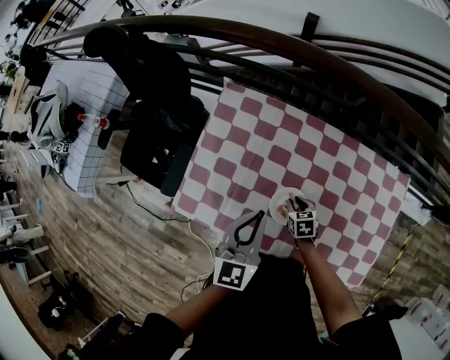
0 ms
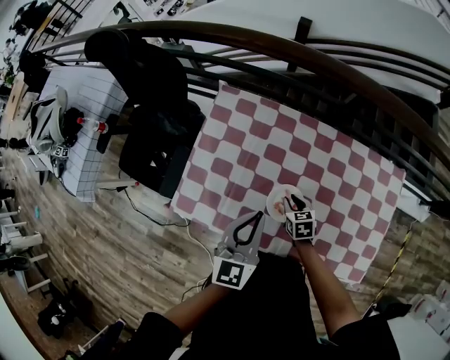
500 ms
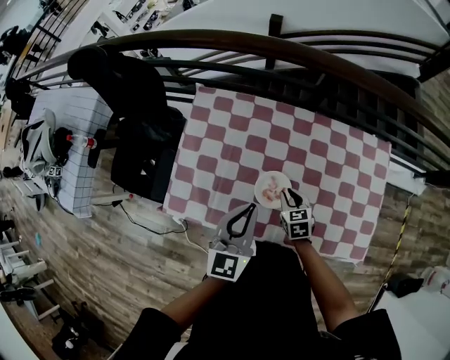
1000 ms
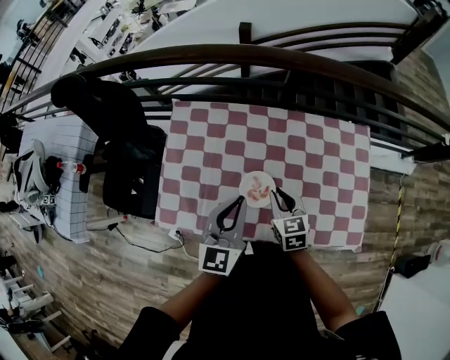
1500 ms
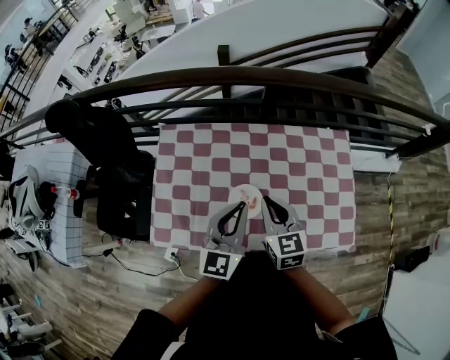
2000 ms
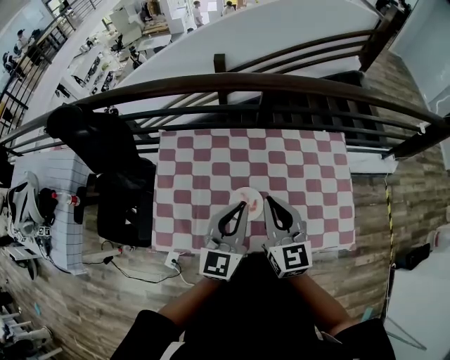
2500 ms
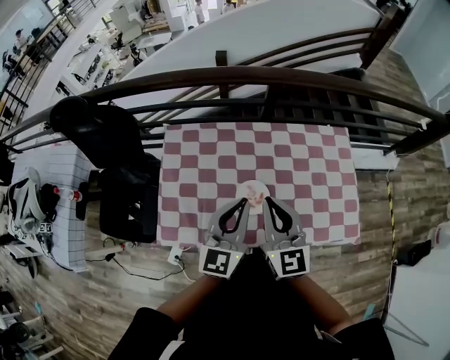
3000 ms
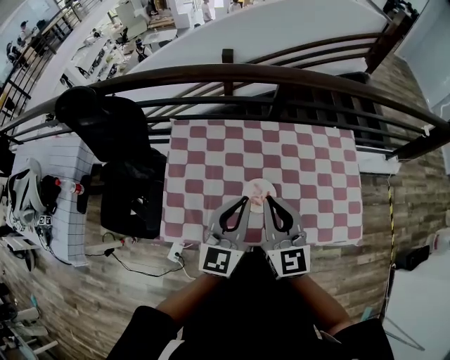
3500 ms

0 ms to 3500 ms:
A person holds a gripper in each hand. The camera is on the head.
0 ms to 2000 ms: The left gripper travels to the right and upward by some 10 cm, and changes its angle by about 20 degrees; the right gripper is displaced upward by roughly 30 cm, points its fingers approximately 40 degrees further upward, and closes up.
2000 ms to 3500 ms: The left gripper is displaced to the left by some 5 cm. Meanwhile the right gripper moves upward, to the left and backward, roughly 10 cm.

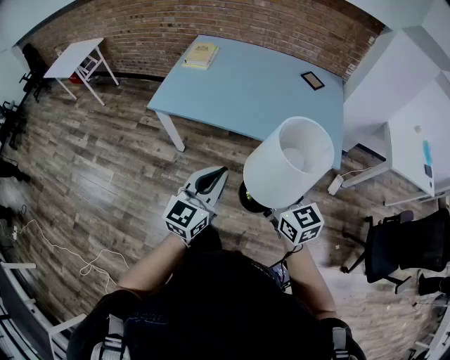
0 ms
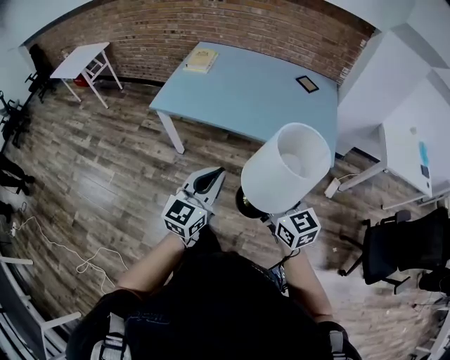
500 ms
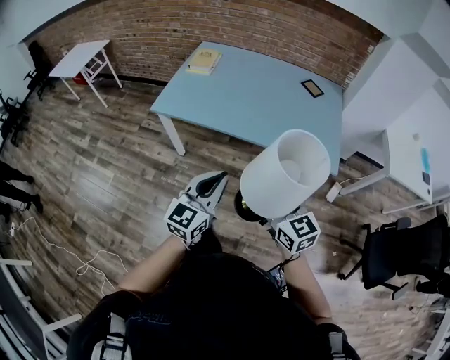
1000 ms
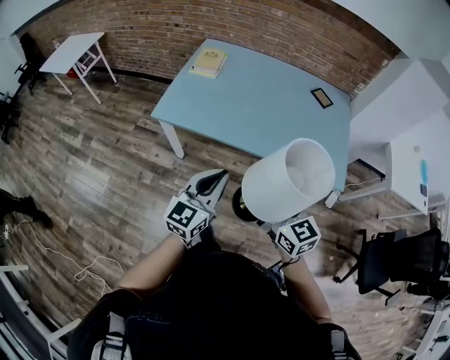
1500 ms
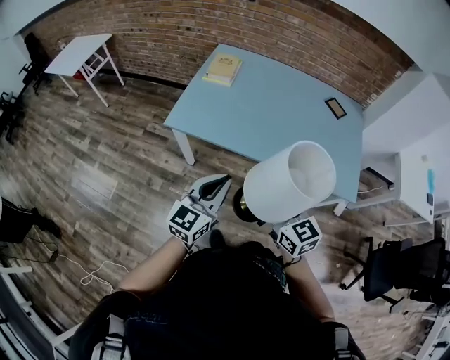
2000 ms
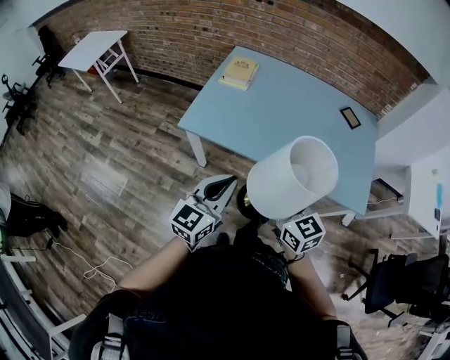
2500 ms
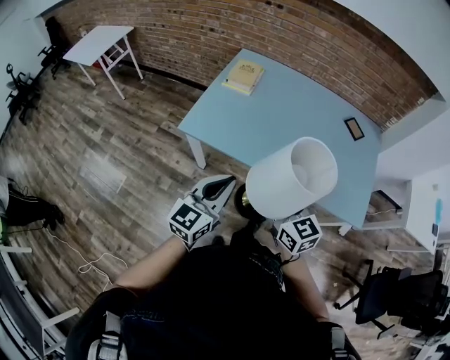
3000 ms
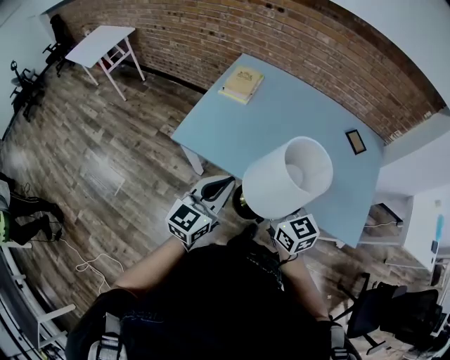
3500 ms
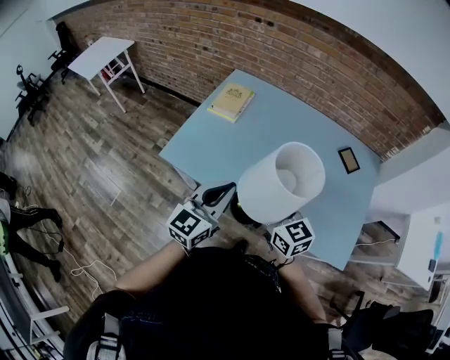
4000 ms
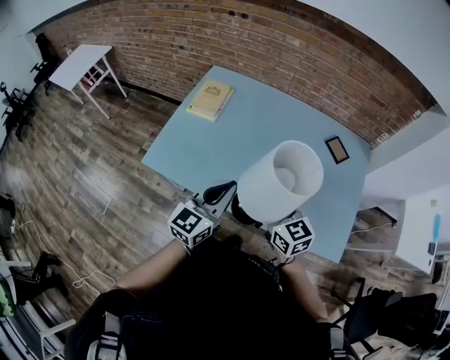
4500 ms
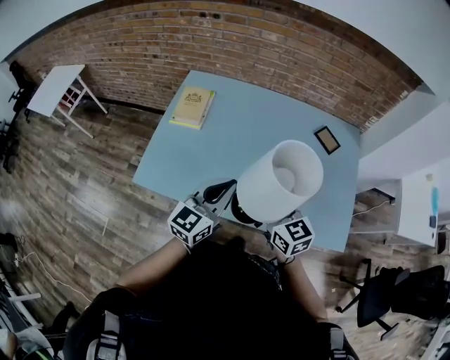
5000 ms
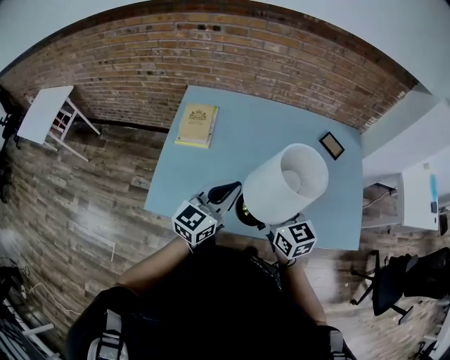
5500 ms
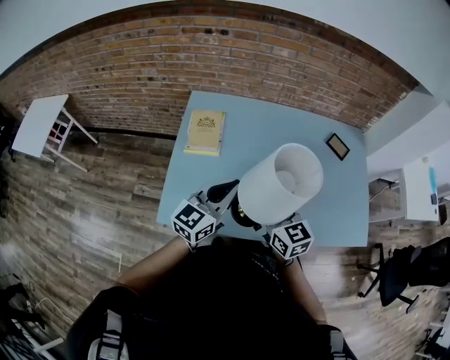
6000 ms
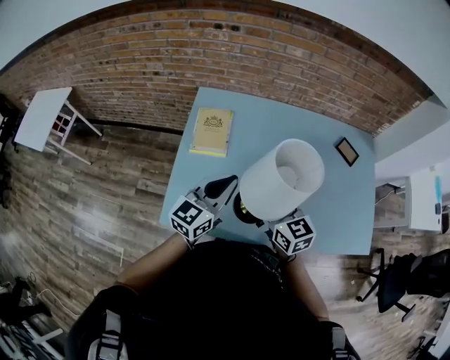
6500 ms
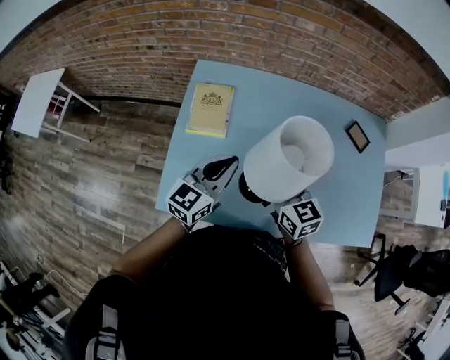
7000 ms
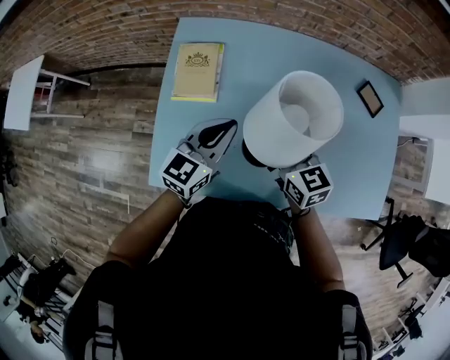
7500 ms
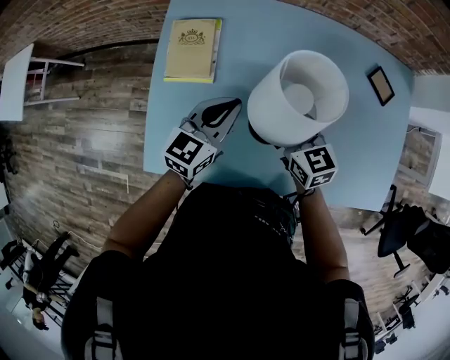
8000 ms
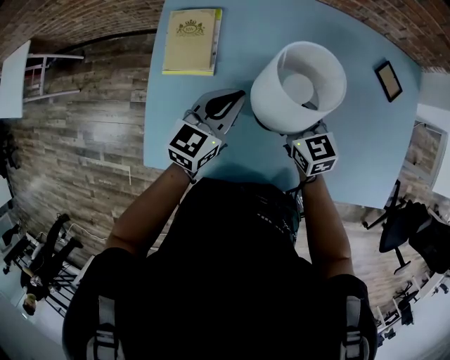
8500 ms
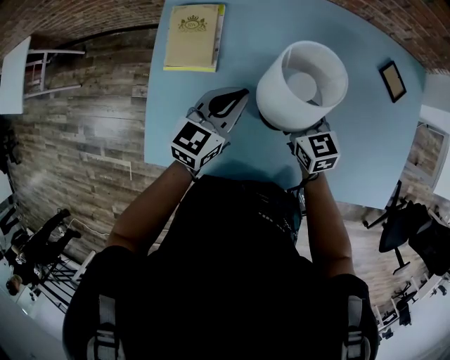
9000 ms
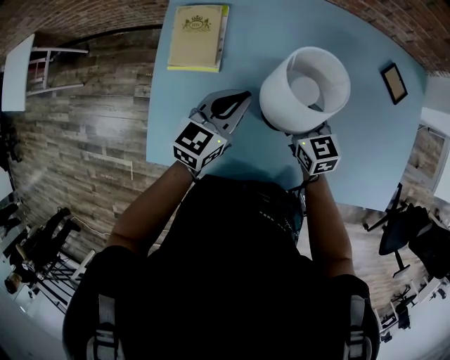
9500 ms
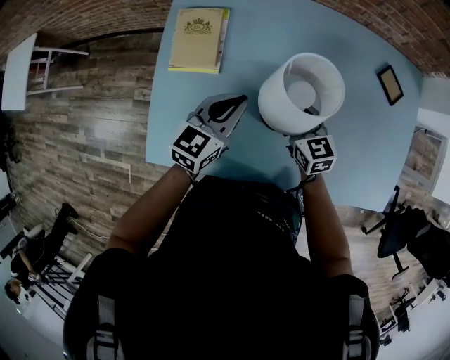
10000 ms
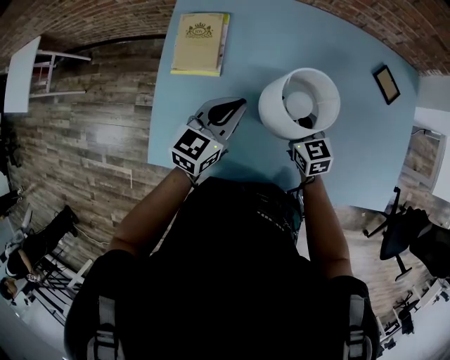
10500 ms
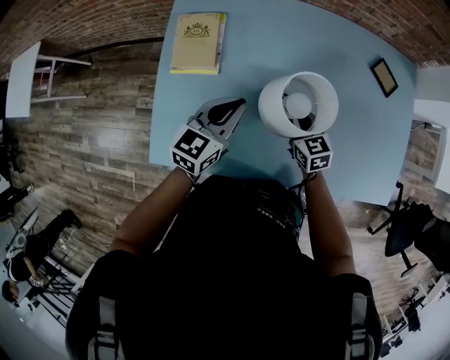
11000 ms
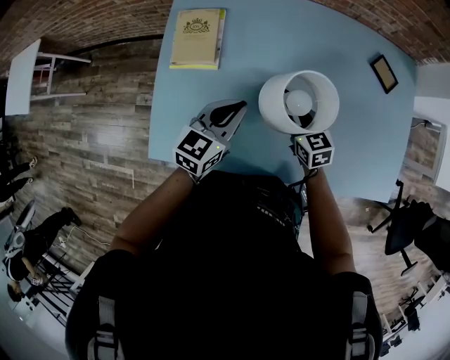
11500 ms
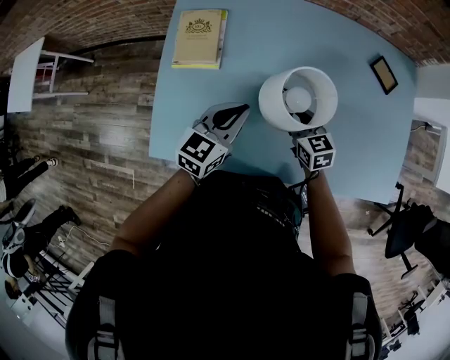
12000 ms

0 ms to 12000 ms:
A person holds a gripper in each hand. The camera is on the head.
0 ms to 2000 ms: The two grippers go approximately 20 cm to the left and forward.
2000 ms to 4000 ms: The right gripper goes some 25 cm forward; the left gripper heads forward and to the right, covering approximately 25 cm.
4000 ms to 6000 ms: The right gripper moves roughly 20 cm, and turns by about 30 degrees. The left gripper changes place by approximately 25 cm, and changes its angle by approximately 30 degrees.
6000 ms to 8000 ms: The grippers both shift forward and downward by roughly 25 cm.
8000 ms to 10000 ms: The right gripper travels downward by roughly 5 cm.
10000 ms to 12000 ms: Both grippers move backward, roughly 5 cm.

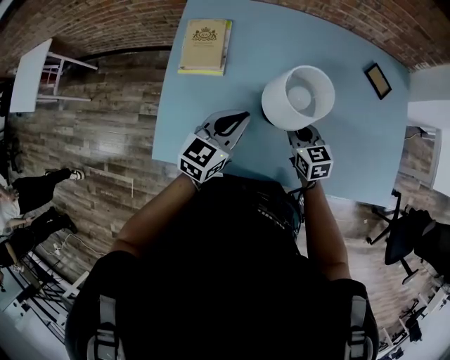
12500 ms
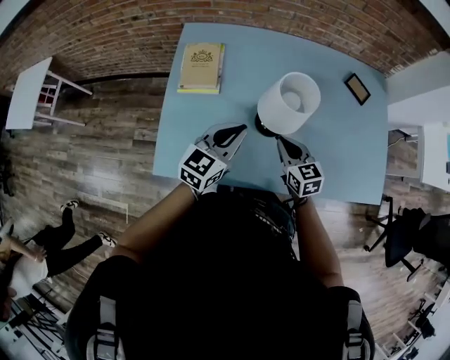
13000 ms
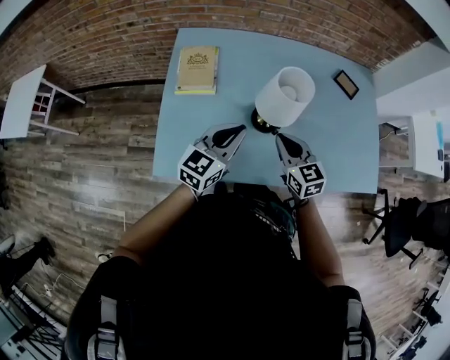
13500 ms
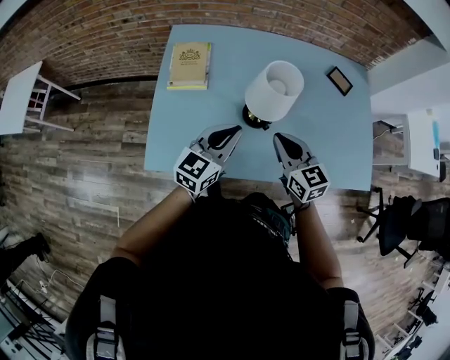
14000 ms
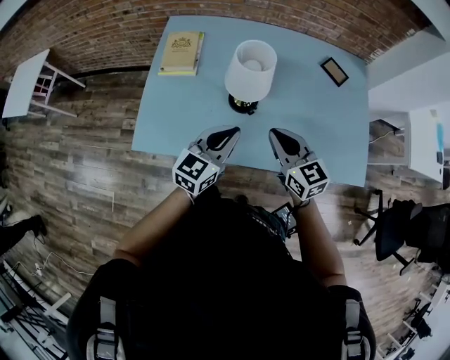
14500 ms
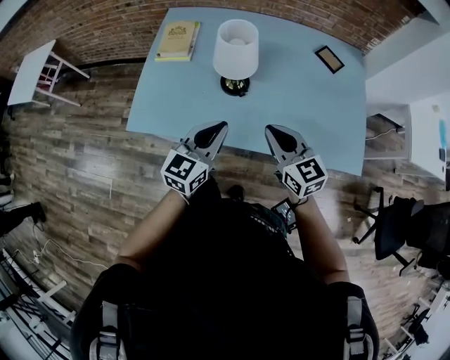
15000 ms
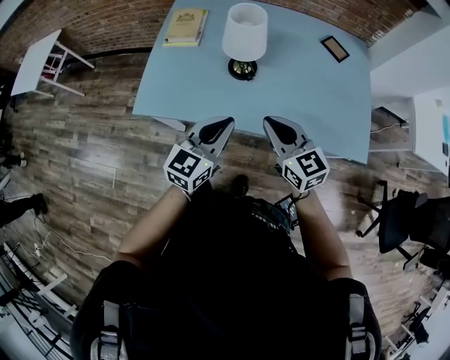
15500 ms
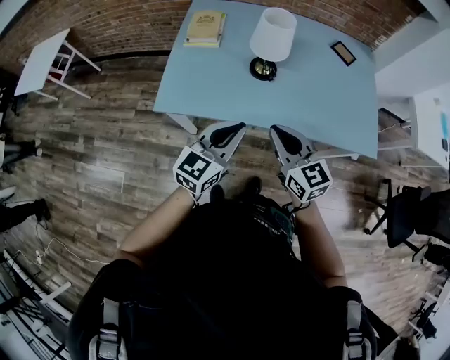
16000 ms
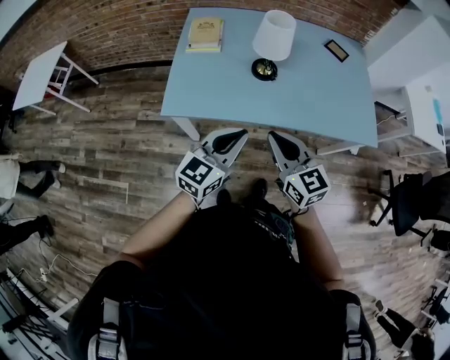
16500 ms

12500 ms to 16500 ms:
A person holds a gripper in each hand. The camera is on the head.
12500 ms to 14500 ms: The left gripper heads backward, to the right and upward, covering approximately 20 cm. The right gripper travels upward and backward by about 25 cm.
14500 ms to 16500 ms: The right gripper goes about 25 cm backward and to the left. Meanwhile the left gripper is displaced backward by roughly 25 cm.

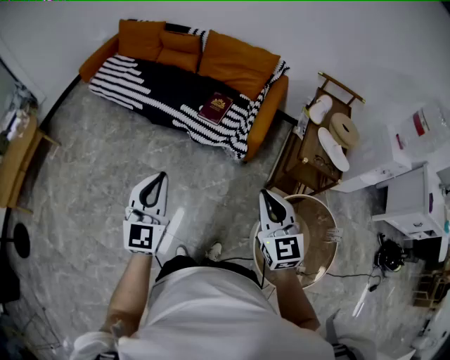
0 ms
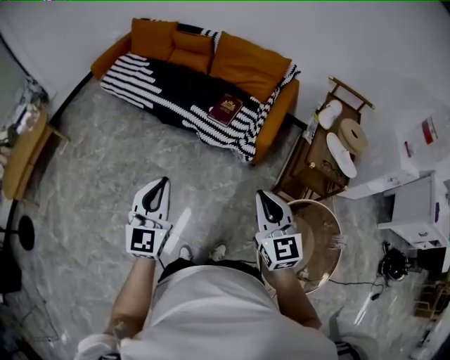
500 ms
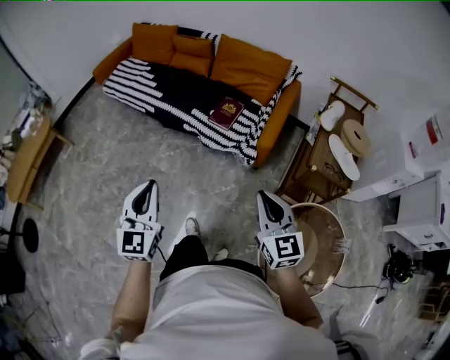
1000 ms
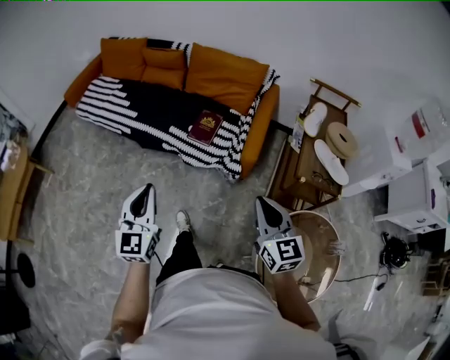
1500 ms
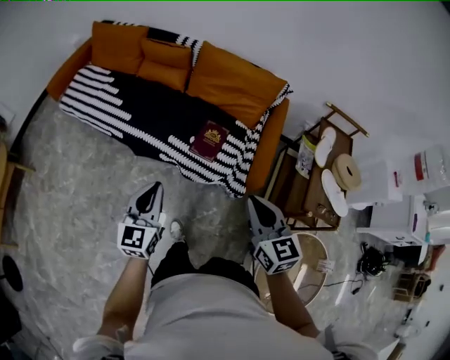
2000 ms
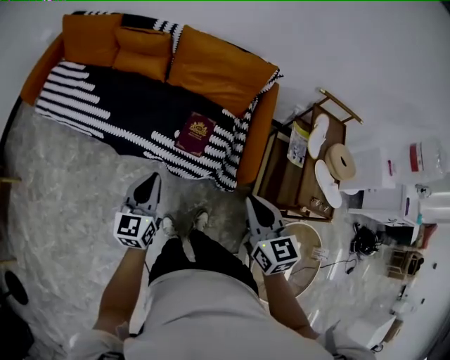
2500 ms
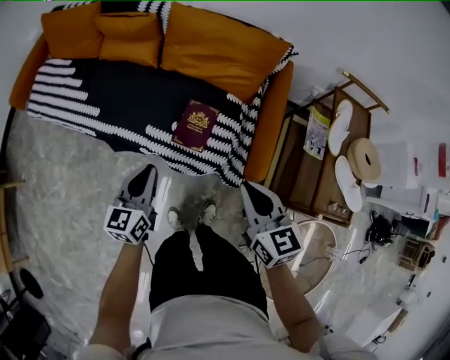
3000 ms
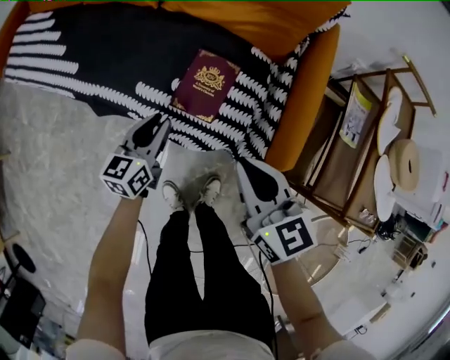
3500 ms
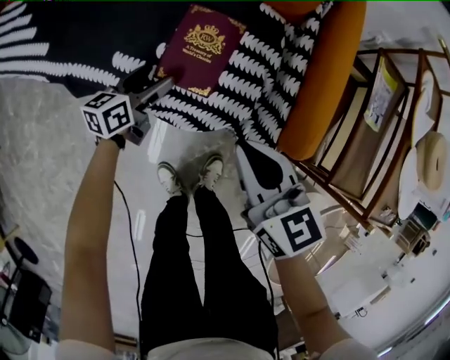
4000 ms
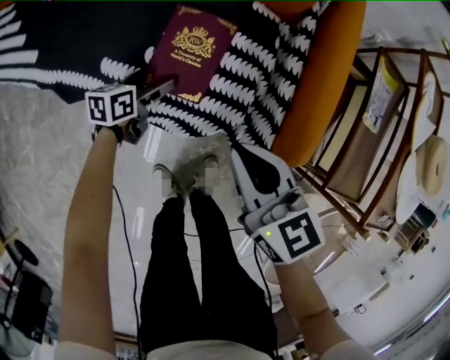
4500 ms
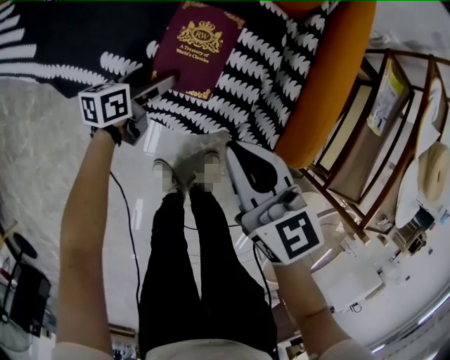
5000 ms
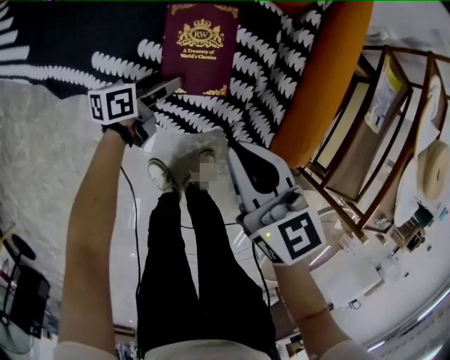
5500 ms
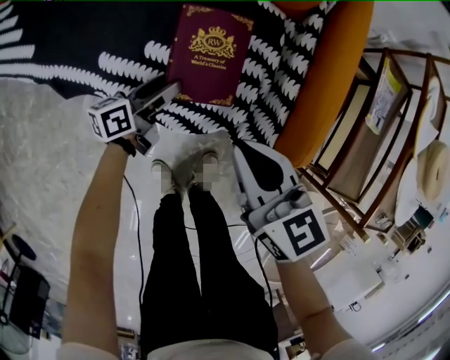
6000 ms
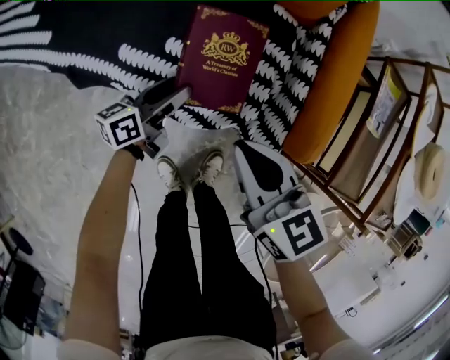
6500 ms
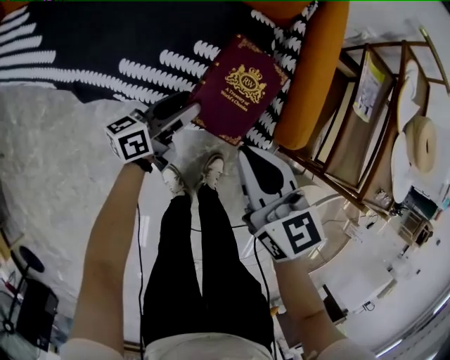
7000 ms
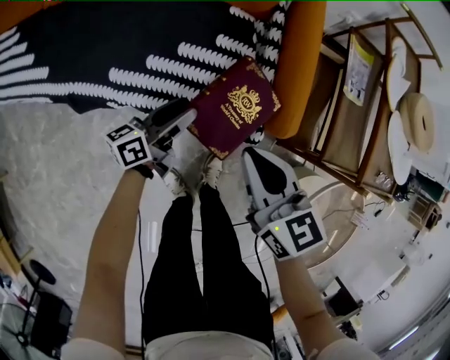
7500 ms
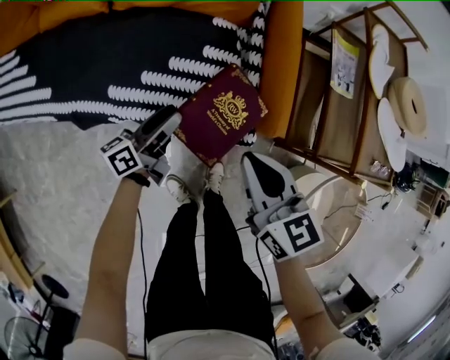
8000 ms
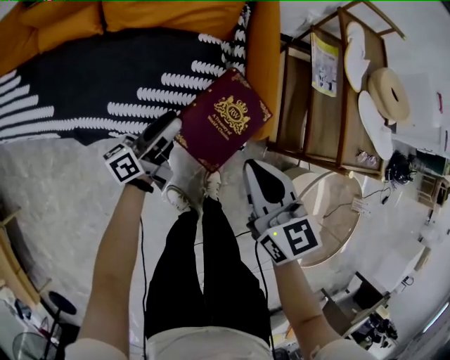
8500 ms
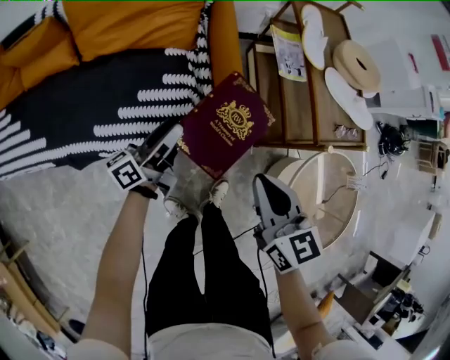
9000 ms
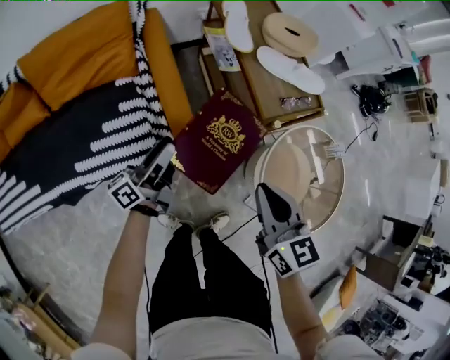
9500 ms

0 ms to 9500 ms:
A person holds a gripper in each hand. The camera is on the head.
0 ms to 2000 ms: Both grippers travel together forward, approximately 35 cm.
2000 ms to 4000 ms: Both grippers travel together downward and forward, roughly 50 cm. The left gripper changes its angle by roughly 40 degrees, and opens.
4000 ms to 5500 ms: The left gripper heads downward and to the right, covering some 10 cm, and changes its angle by approximately 20 degrees.
5500 ms to 7500 ms: The right gripper goes roughly 10 cm upward and backward. Meanwhile the left gripper heads upward, covering about 15 cm, and rotates some 20 degrees.
7500 ms to 9500 ms: The left gripper goes some 10 cm to the left, and rotates roughly 20 degrees, while the right gripper travels to the right and back again, about 10 cm each way.
